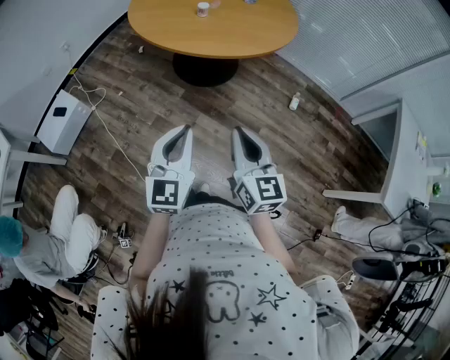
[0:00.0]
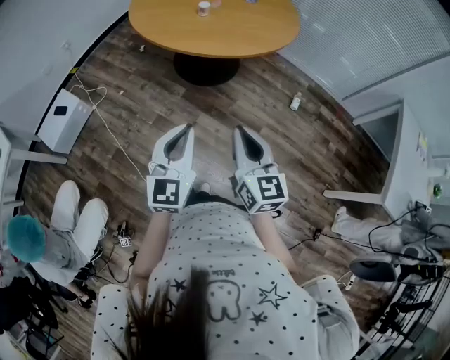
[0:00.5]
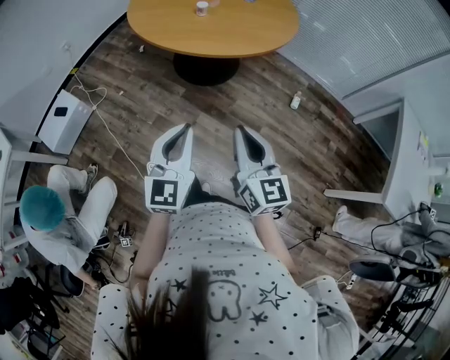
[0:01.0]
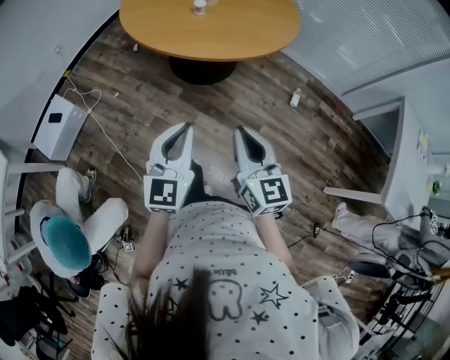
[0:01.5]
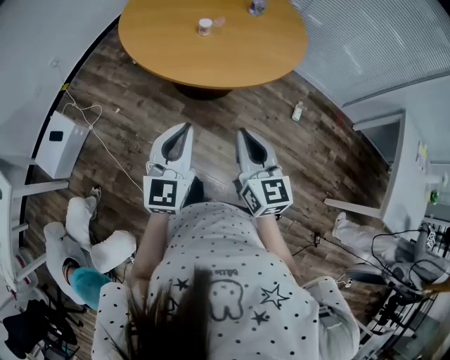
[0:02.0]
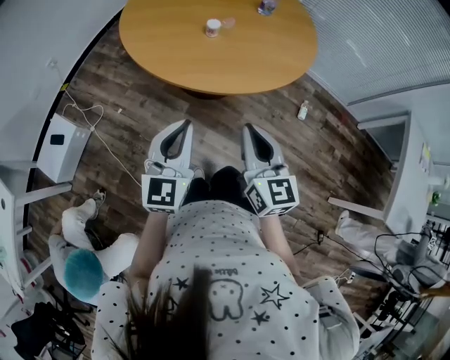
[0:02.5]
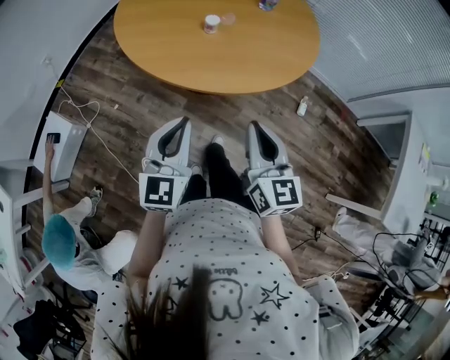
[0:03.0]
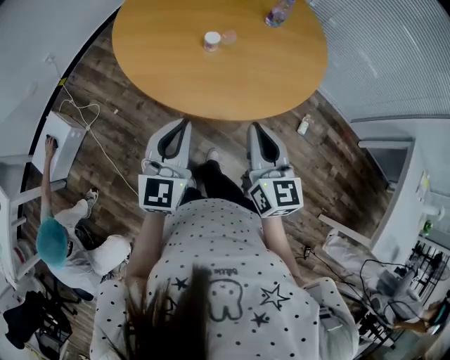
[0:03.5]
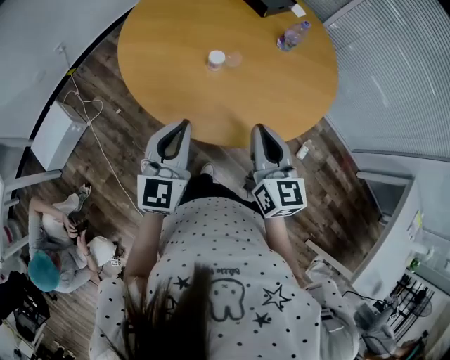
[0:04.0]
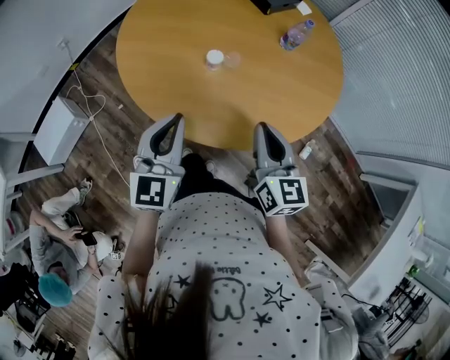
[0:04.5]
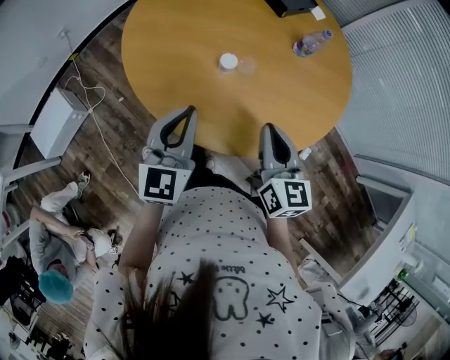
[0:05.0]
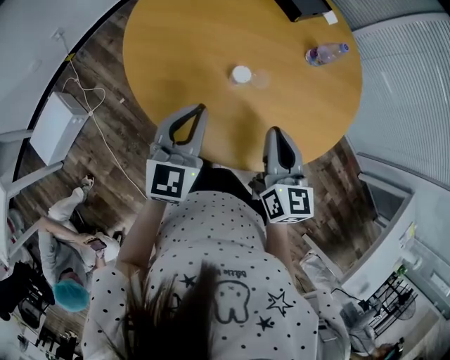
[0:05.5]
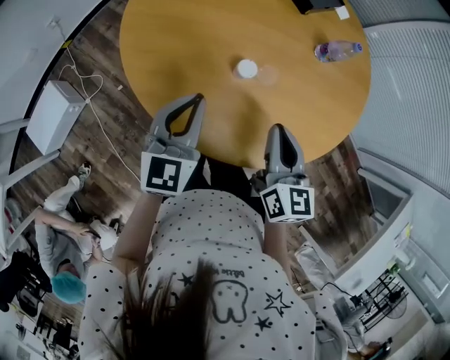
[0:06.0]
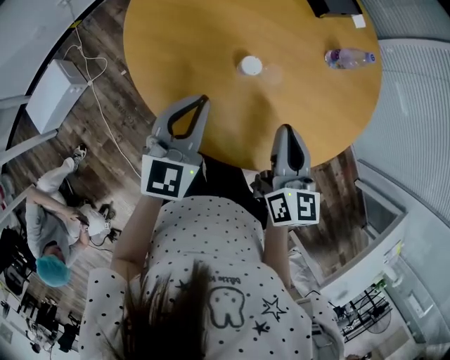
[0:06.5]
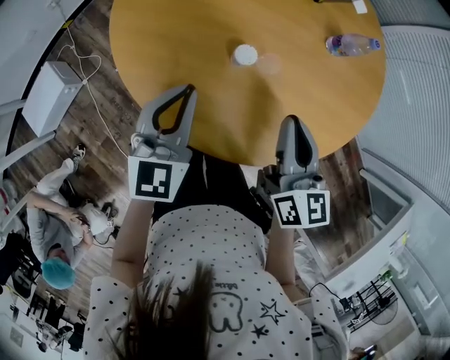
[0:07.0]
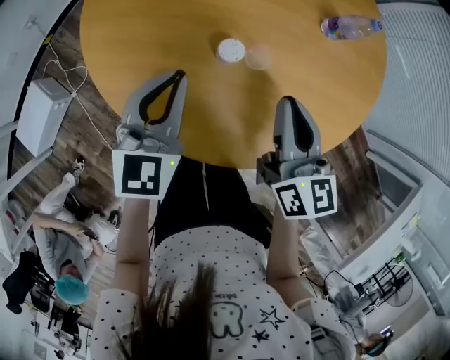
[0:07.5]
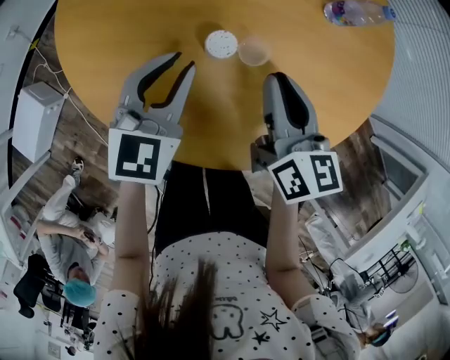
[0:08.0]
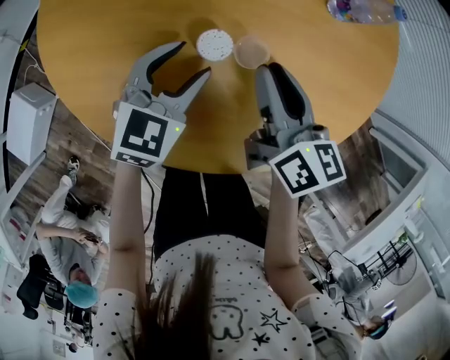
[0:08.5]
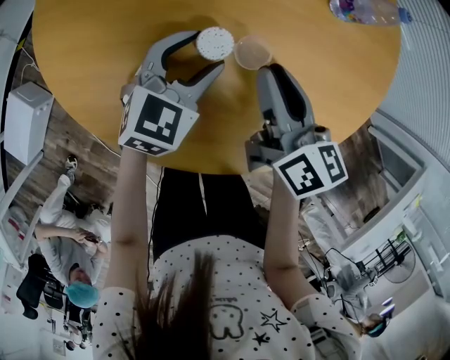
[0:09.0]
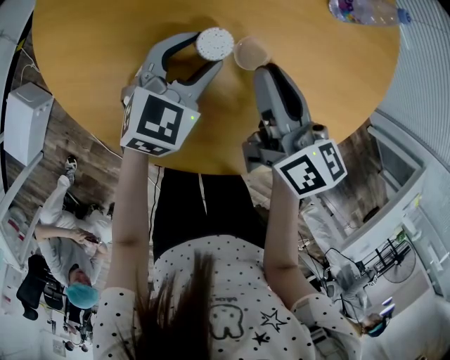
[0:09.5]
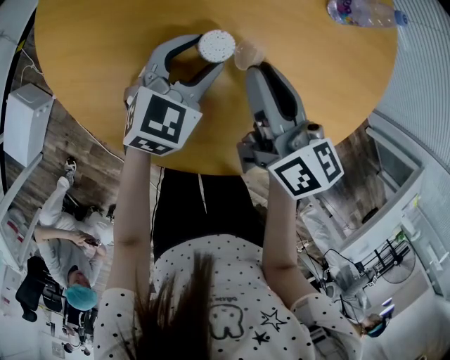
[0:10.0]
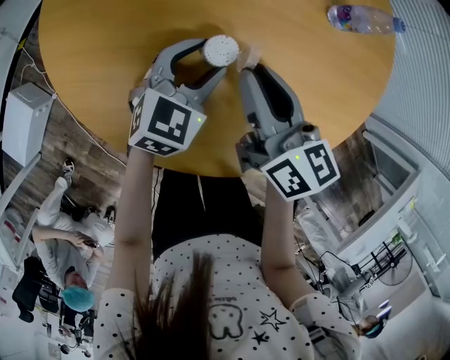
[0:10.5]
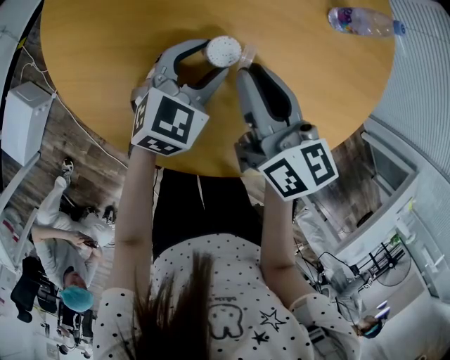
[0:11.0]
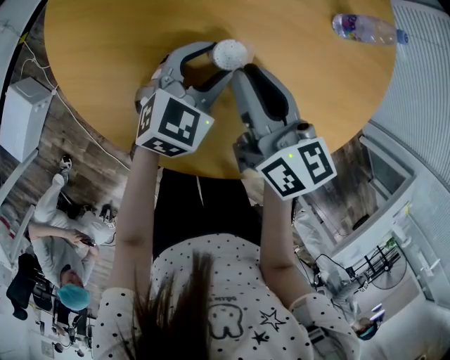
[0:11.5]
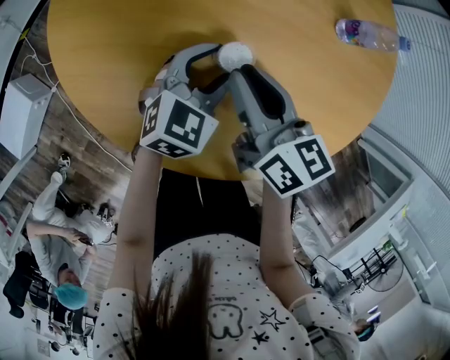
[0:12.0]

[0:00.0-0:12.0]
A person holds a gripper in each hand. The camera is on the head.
0:00.0 to 0:02.0: Both grippers move forward, roughly 20 cm.
0:02.0 to 0:04.0: Both grippers travel together forward, some 30 cm.
0:04.0 to 0:06.0: The grippers both shift forward by about 15 cm.
0:06.0 to 0:08.0: The left gripper shifts roughly 15 cm downward, forward and to the right; the right gripper travels forward and downward by some 15 cm.
0:08.0 to 0:10.0: The left gripper travels downward by roughly 10 cm, and opens.
0:10.0 to 0:12.0: The right gripper heads to the left, covering some 5 cm.

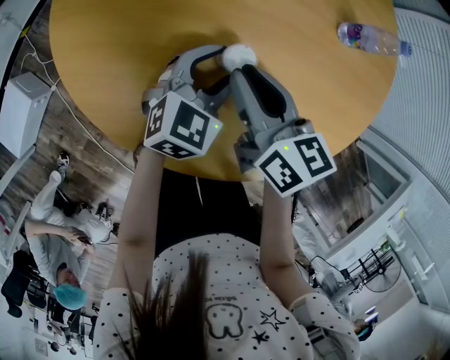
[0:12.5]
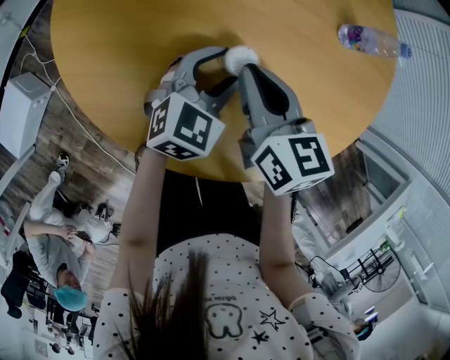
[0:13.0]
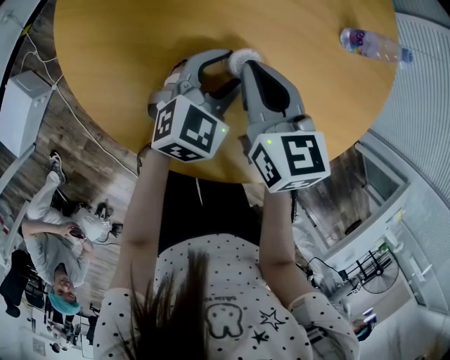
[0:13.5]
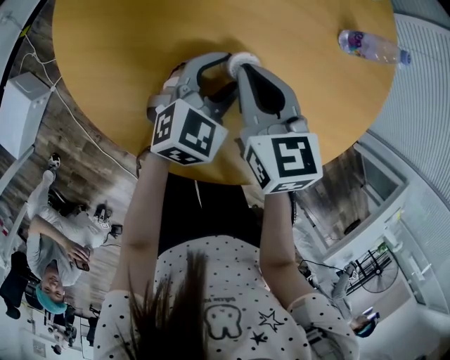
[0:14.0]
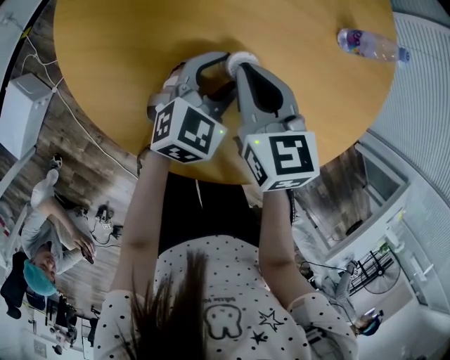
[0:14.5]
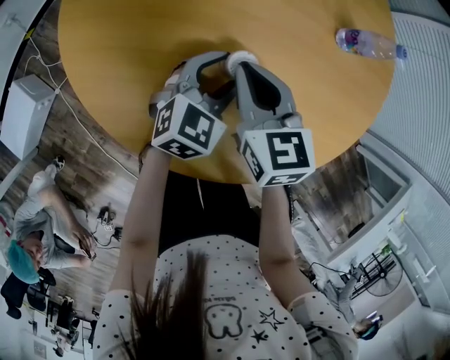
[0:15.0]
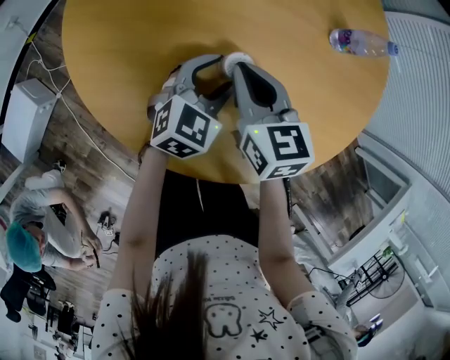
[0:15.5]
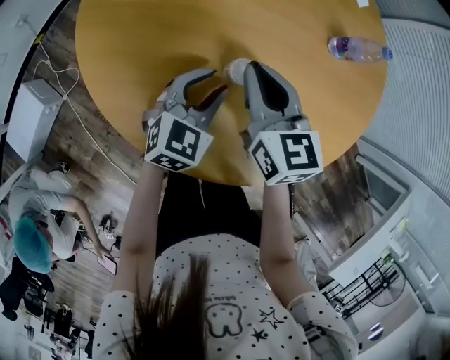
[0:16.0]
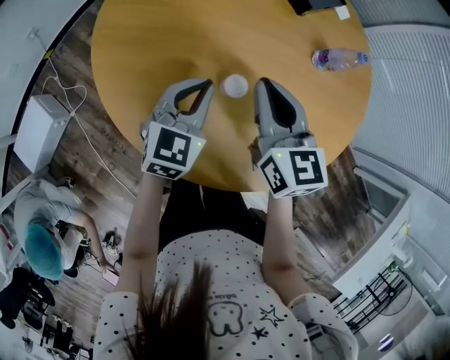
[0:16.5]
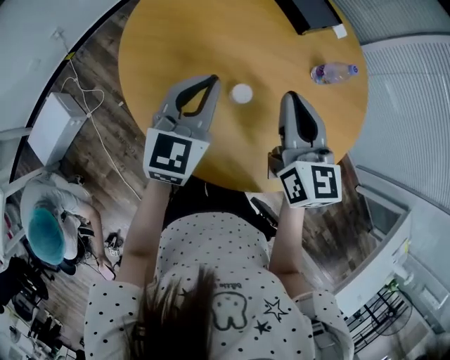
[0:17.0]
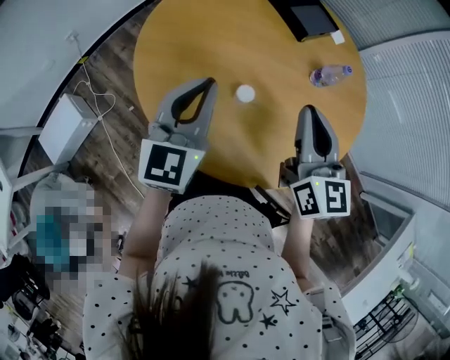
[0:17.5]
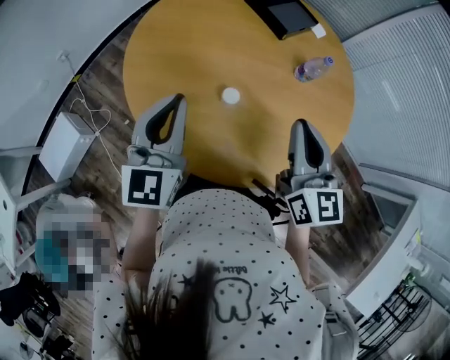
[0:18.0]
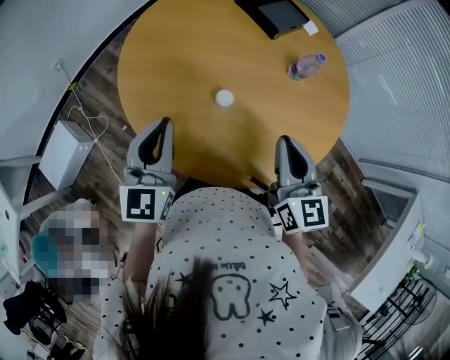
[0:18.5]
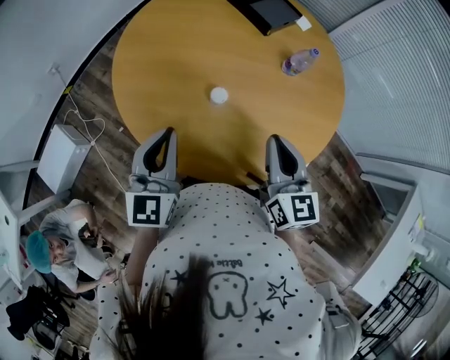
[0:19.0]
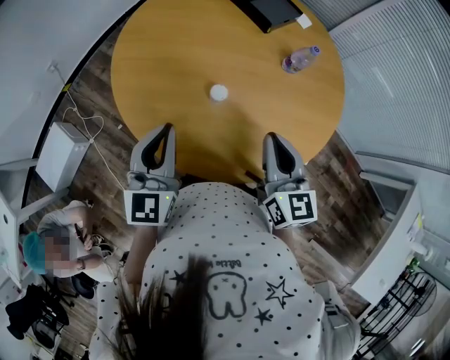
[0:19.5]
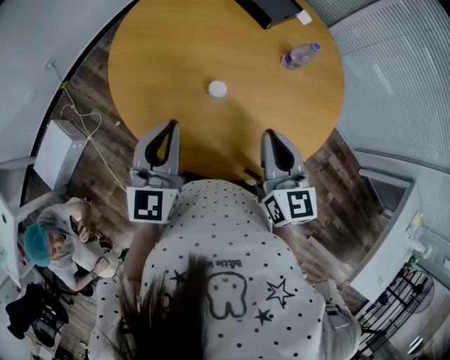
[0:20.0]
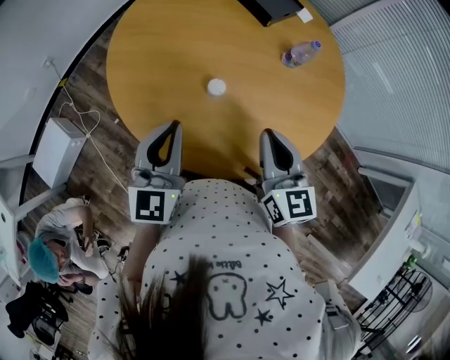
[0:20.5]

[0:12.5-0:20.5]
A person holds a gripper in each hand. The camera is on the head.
0:12.5 to 0:14.5: The right gripper changes its angle by approximately 20 degrees.
0:14.5 to 0:16.5: The left gripper is displaced upward and to the left by some 10 cm, and closes its fingers. The right gripper shifts about 10 cm upward.
0:16.5 to 0:18.5: The right gripper heads backward, upward and to the right, covering about 20 cm, while the left gripper shifts about 20 cm upward and backward, and turns by some 20 degrees.
0:18.5 to 0:20.5: There are only small adjustments of the grippers.

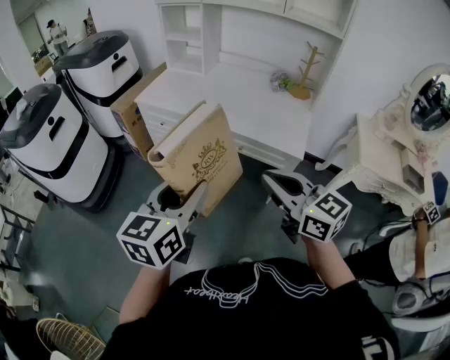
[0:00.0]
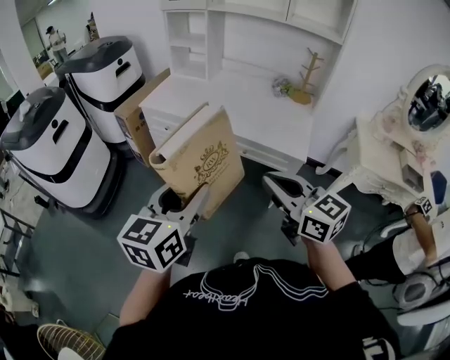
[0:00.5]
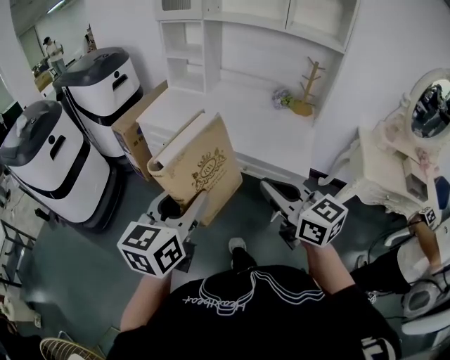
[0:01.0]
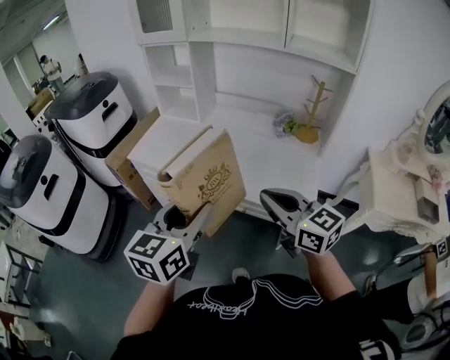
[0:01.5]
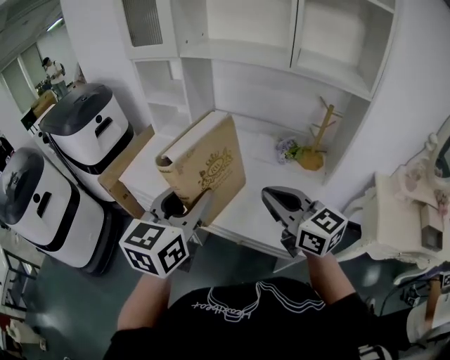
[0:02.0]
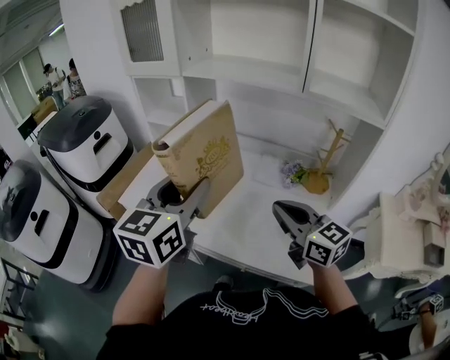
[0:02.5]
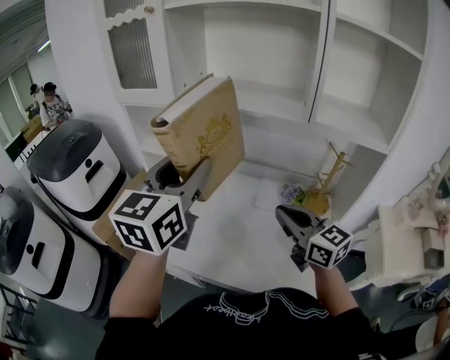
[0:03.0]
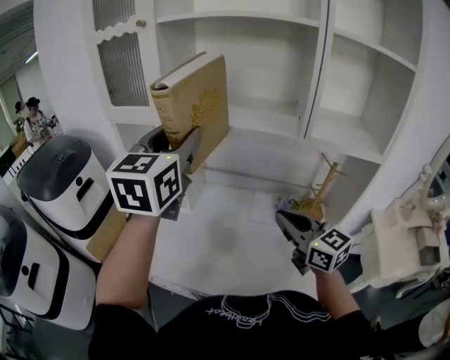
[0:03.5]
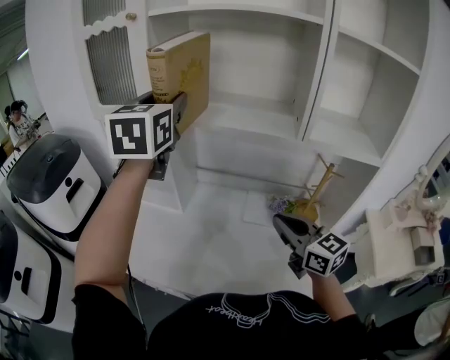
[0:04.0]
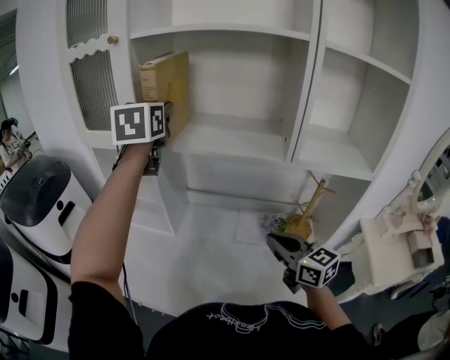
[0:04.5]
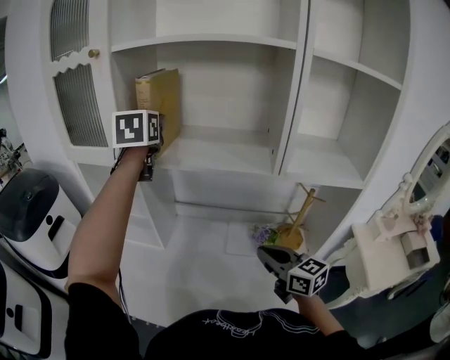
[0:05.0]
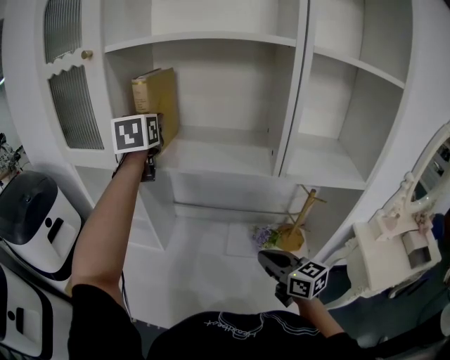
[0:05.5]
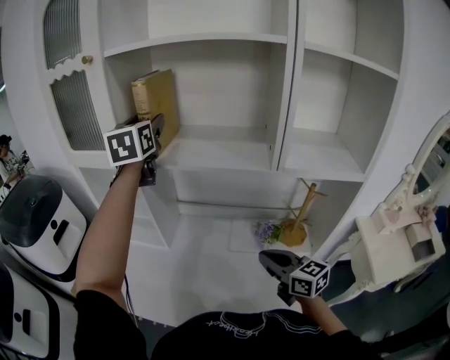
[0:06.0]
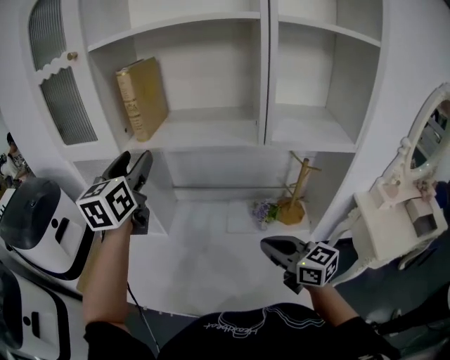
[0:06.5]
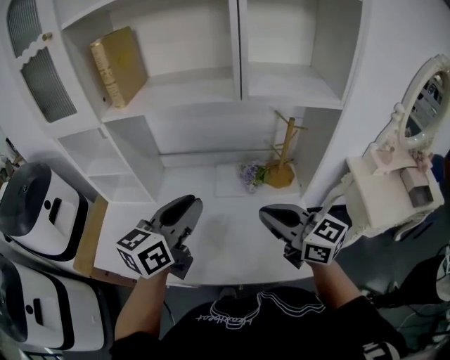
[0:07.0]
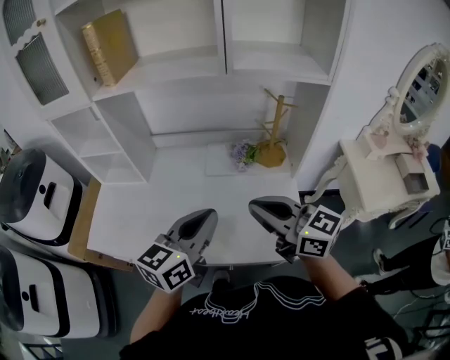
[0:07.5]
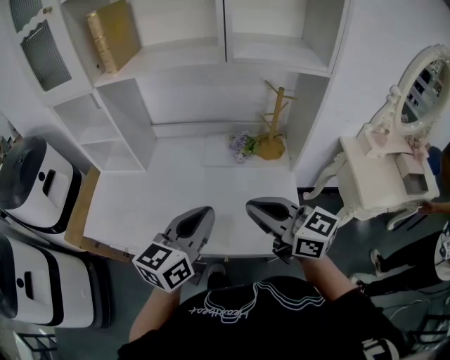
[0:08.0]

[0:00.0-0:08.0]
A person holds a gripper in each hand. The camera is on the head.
0:00.0 to 0:02.0: Both grippers move forward, some 35 cm.
0:02.0 to 0:04.0: The left gripper goes approximately 50 cm forward and upward; the right gripper heads forward, covering approximately 20 cm.
0:04.0 to 0:06.0: The right gripper goes roughly 5 cm downward, while the left gripper heads forward, covering approximately 15 cm.
0:06.0 to 0:08.0: The left gripper shifts about 60 cm backward, downward and to the right, turns by some 40 degrees, and closes up. Meanwhile the right gripper moves backward, about 15 cm.
